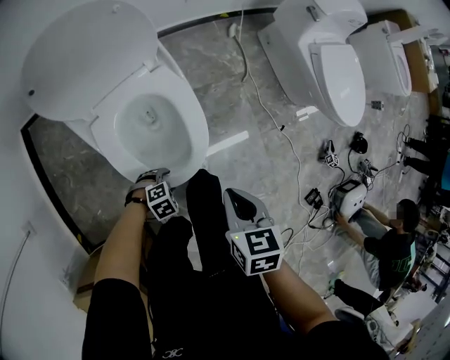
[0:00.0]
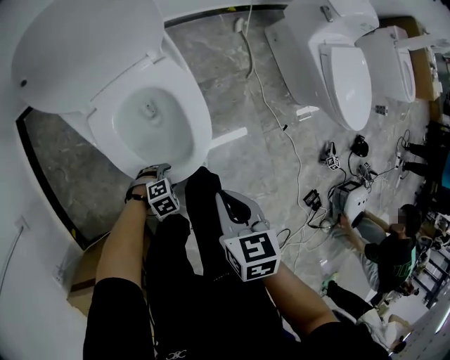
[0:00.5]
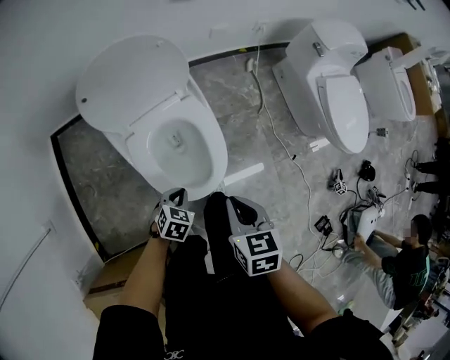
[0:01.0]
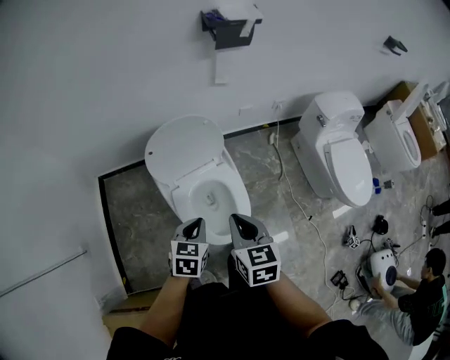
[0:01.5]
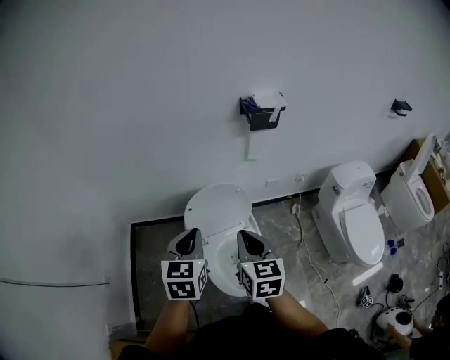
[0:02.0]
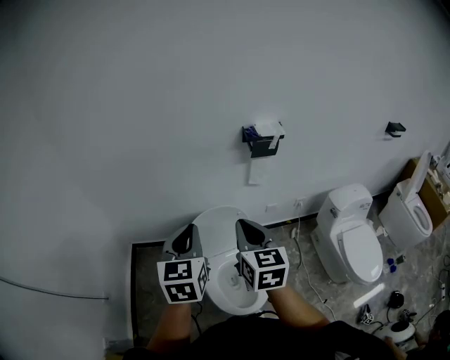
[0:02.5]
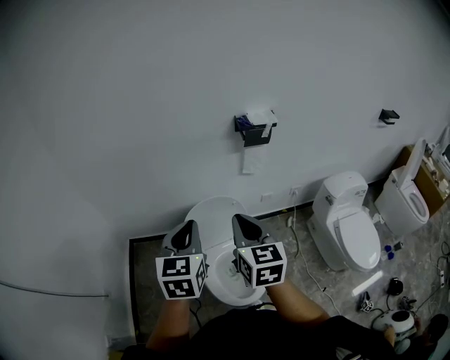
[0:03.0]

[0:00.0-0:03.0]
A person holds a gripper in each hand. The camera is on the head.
0:00.0 to 0:01.5: The left gripper heads upward, covering about 40 cm, changes its angle by about 70 degrees, and closes its fingers. Meanwhile the right gripper heads upward, covering about 20 cm, and changes its angle by about 30 degrees.
0:01.5 to 0:03.0: Both grippers travel together upward, some 30 cm. The right gripper rotates roughly 20 degrees. The left gripper turns by about 30 degrees.

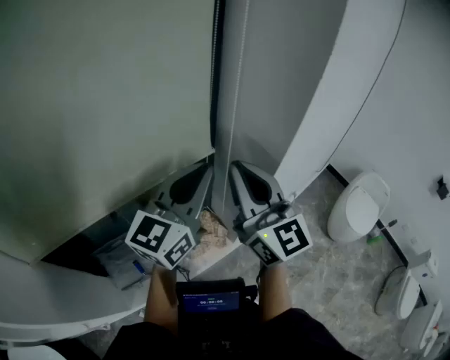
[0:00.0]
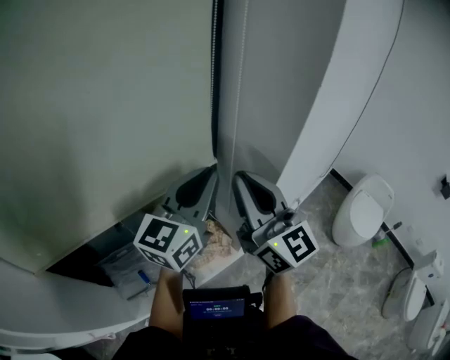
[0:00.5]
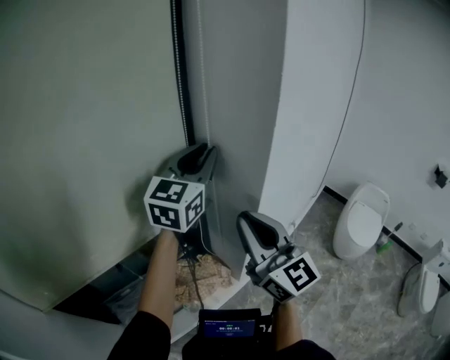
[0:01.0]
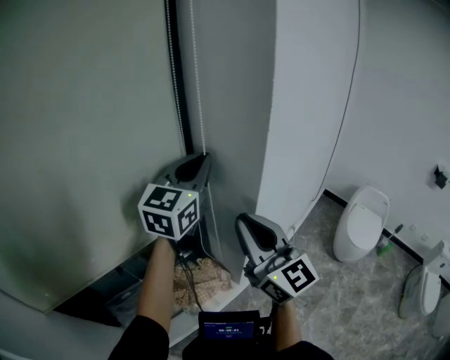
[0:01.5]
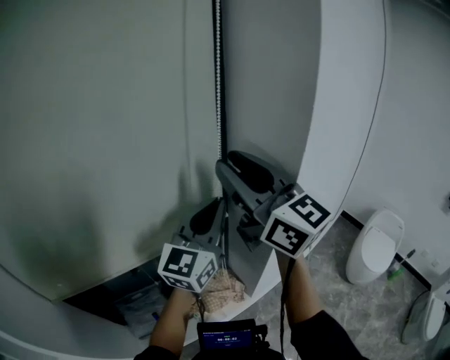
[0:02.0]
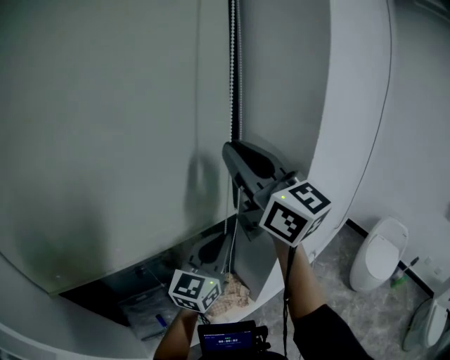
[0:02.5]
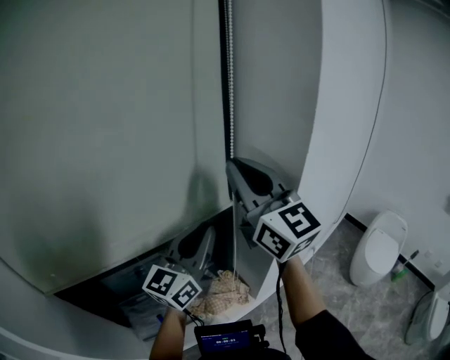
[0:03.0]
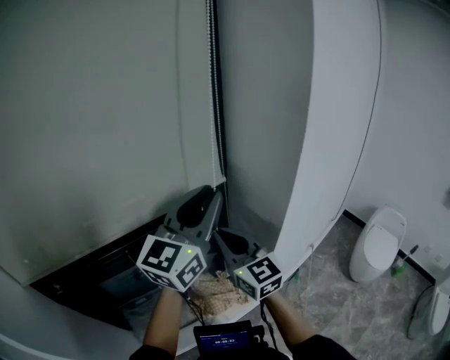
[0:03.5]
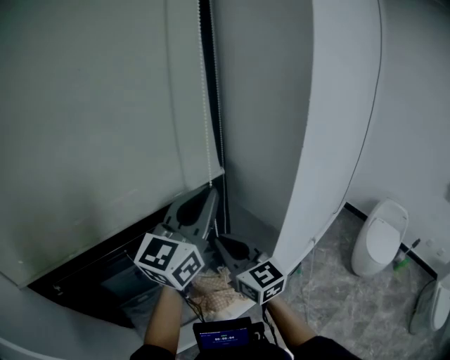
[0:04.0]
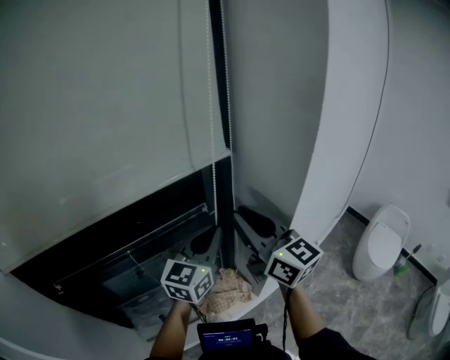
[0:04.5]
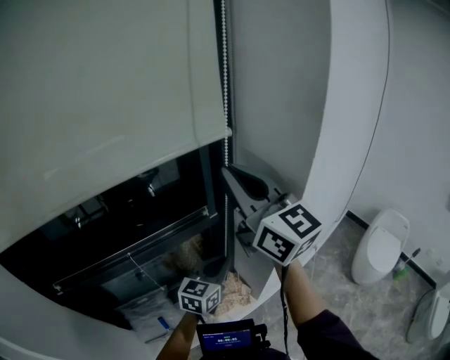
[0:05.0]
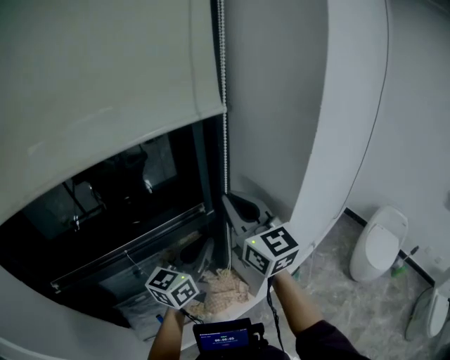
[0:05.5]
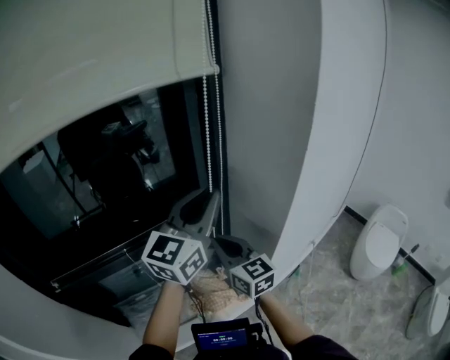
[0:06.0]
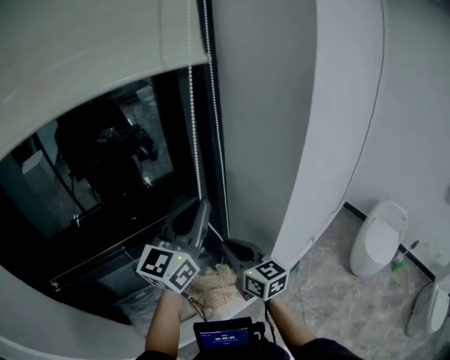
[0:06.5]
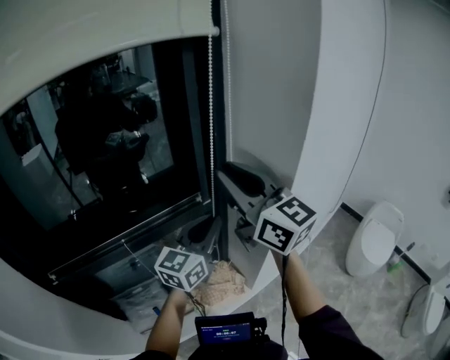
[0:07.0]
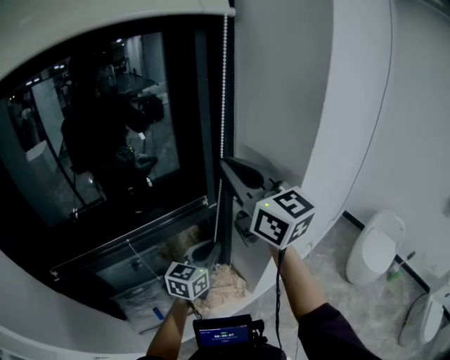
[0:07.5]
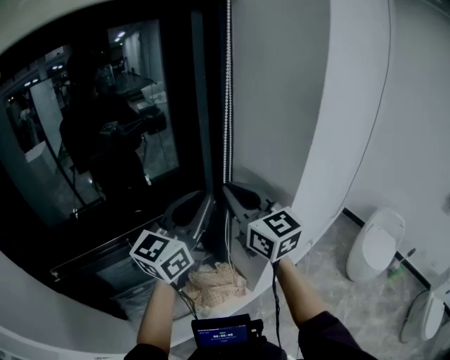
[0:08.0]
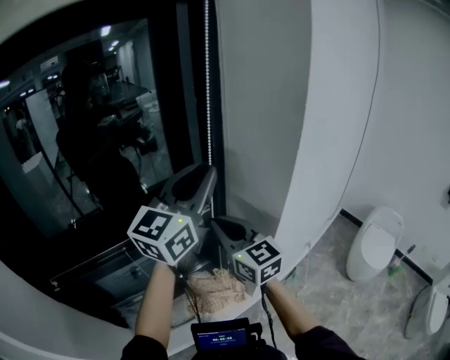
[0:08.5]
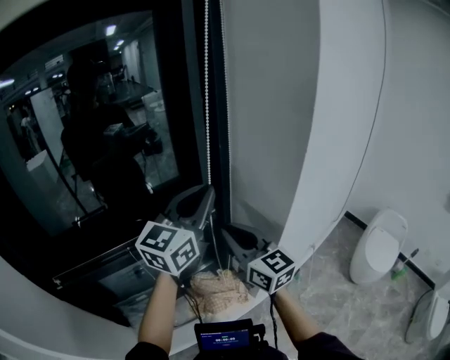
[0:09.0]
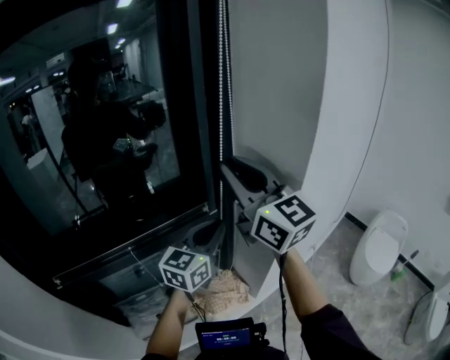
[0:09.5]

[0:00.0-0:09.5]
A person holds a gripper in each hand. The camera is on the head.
0:00.0 to 0:02.0: The left gripper moves upward, approximately 5 cm, and reaches some 15 cm forward, then returns. The right gripper heads upward, covering approximately 15 cm, and opens up.
0:02.0 to 0:04.0: The left gripper goes downward and returns, some 10 cm each way, while the right gripper moves downward, some 25 cm, and closes.
0:04.0 to 0:05.5: The right gripper travels upward by approximately 10 cm; the left gripper heads downward, covering roughly 15 cm.
0:05.5 to 0:07.5: The left gripper goes approximately 10 cm downward. Meanwhile the right gripper travels downward and back again, some 20 cm each way.
0:07.5 to 0:09.5: The left gripper shifts about 10 cm upward. The right gripper travels downward and back again, some 15 cm each way.

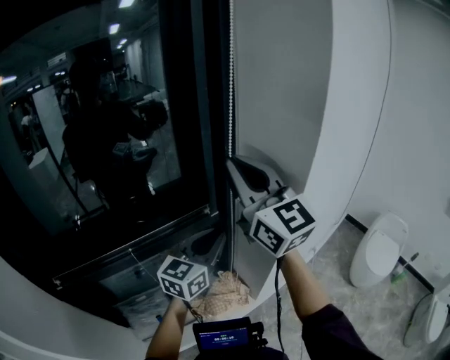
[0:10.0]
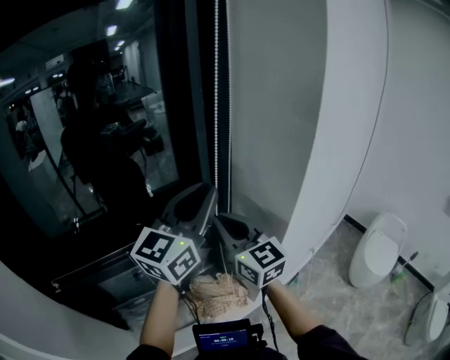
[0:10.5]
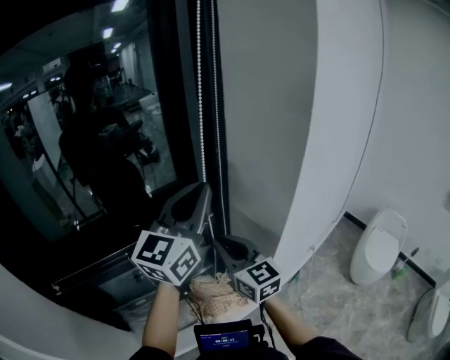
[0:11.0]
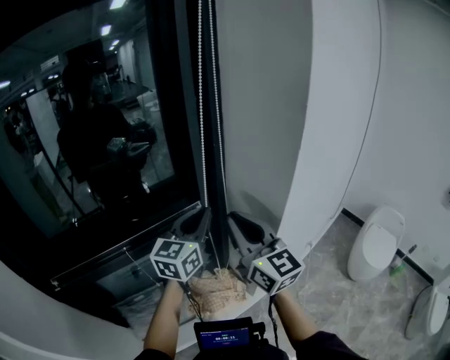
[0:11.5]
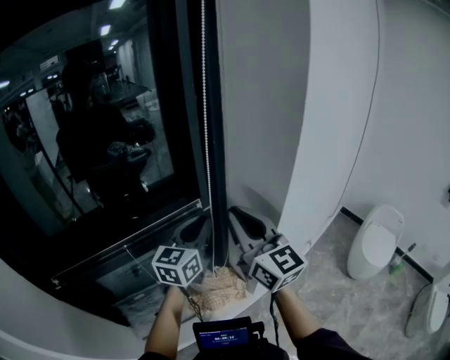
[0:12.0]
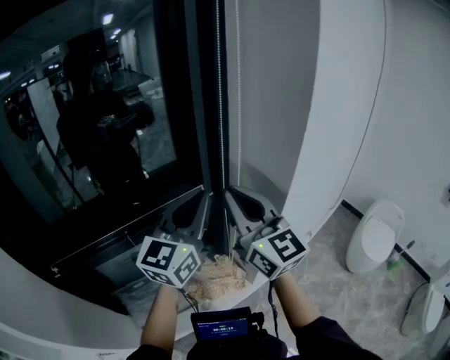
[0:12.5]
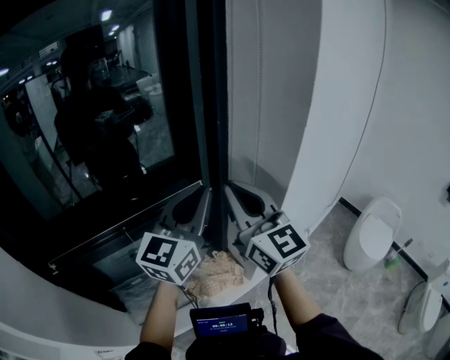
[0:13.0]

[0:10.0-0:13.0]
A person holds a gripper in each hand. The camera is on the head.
0:10.0 to 0:11.5: The right gripper shifts approximately 15 cm downward. Meanwhile the left gripper goes upward and returns, roughly 15 cm each way.
0:11.5 to 0:13.0: The left gripper shifts approximately 10 cm upward and backward, while the right gripper moves roughly 5 cm.

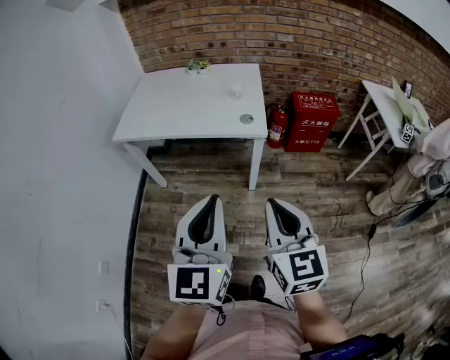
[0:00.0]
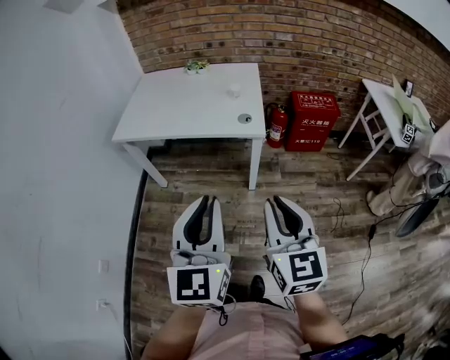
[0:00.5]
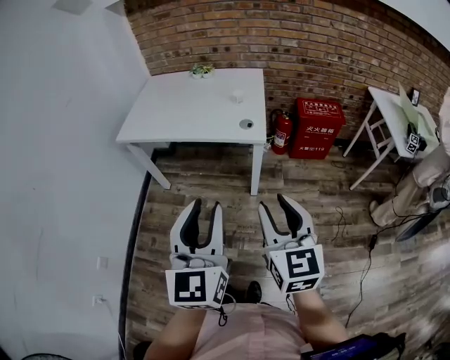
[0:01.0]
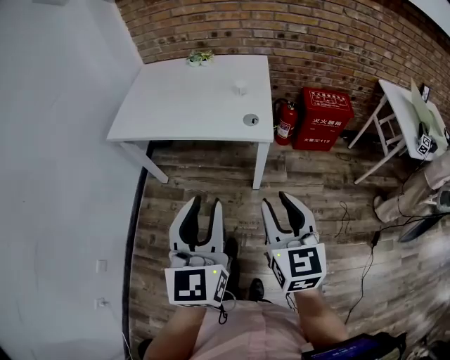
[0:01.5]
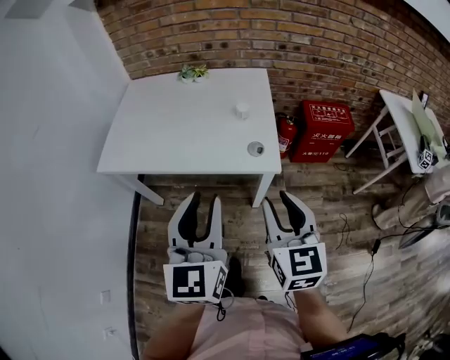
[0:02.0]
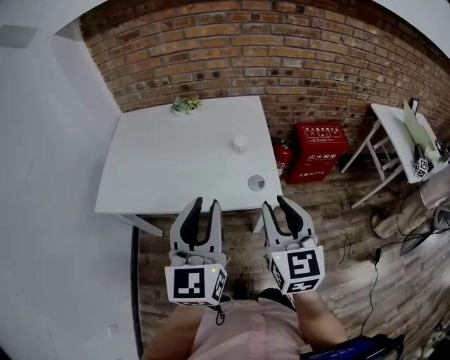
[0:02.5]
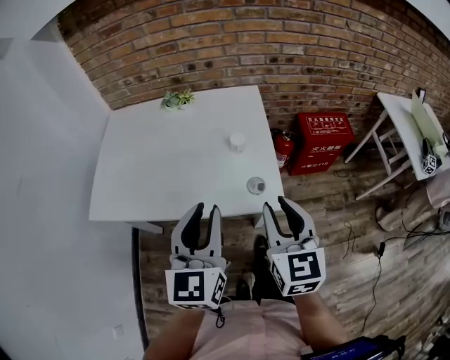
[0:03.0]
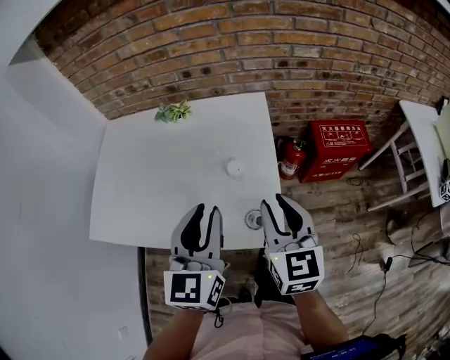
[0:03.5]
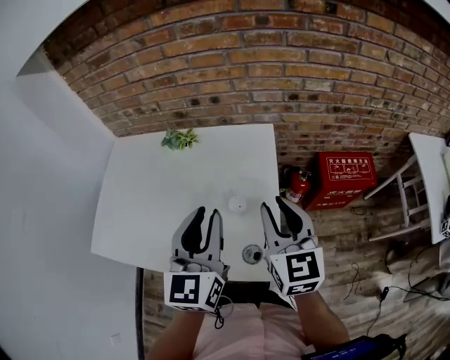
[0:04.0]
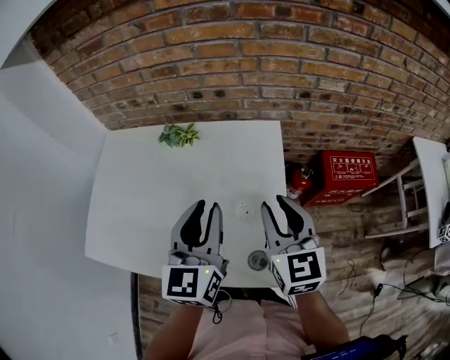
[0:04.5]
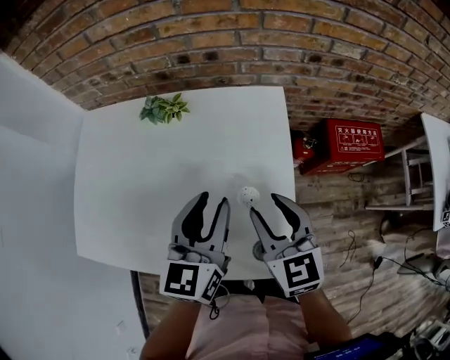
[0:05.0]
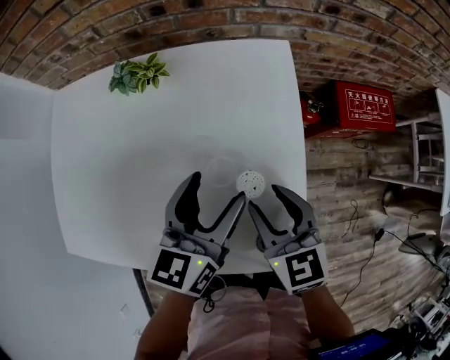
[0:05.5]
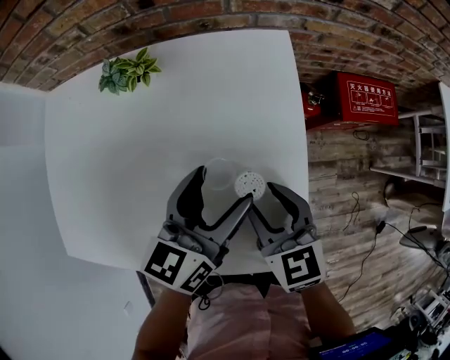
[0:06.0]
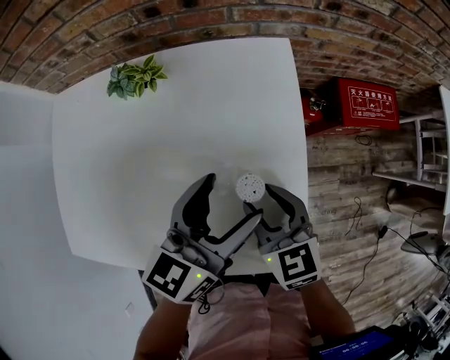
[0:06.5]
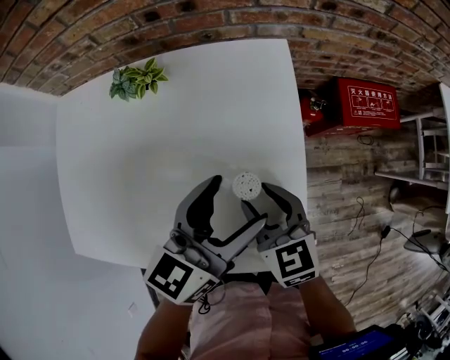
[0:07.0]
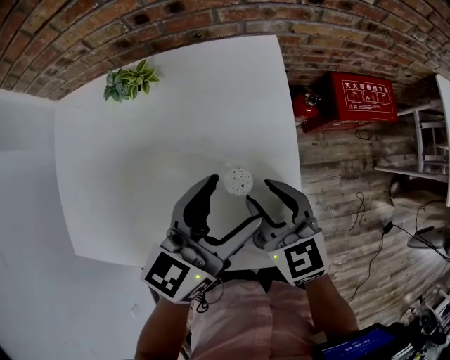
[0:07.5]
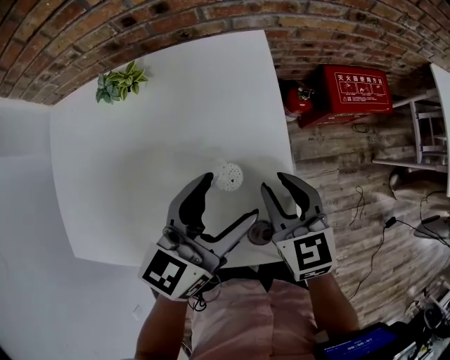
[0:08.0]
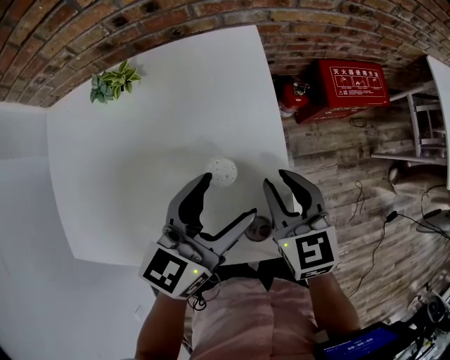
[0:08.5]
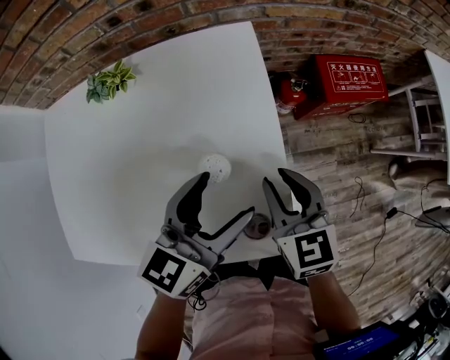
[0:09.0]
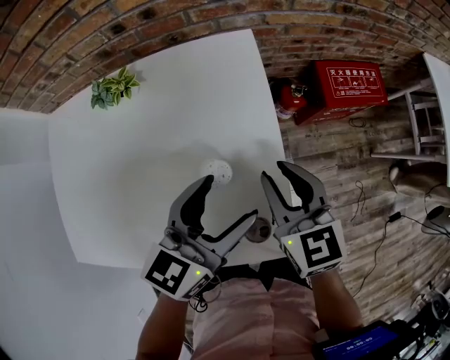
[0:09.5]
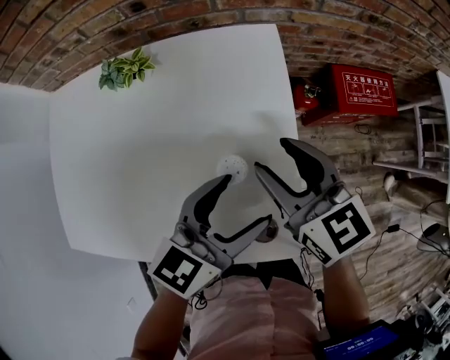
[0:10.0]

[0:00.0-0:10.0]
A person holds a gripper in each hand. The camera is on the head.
0:00.0 to 0:02.0: Both grippers move forward, approximately 25 cm. The right gripper opens its fingers.
0:02.0 to 0:04.0: The grippers both shift forward by about 35 cm.
0:04.0 to 0:06.0: The left gripper is displaced downward and forward by about 20 cm, changes its angle by about 40 degrees, and opens. The right gripper is displaced downward and to the left by roughly 20 cm, and rotates roughly 30 degrees.
0:06.0 to 0:08.0: Both grippers travel together to the right, approximately 5 cm.
0:08.0 to 0:10.0: The right gripper heads upward, covering about 5 cm, and opens up.
